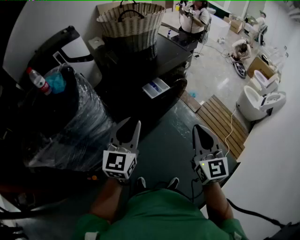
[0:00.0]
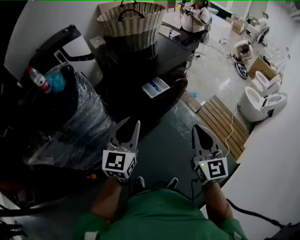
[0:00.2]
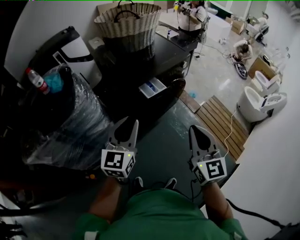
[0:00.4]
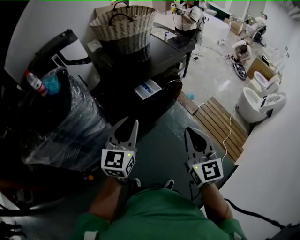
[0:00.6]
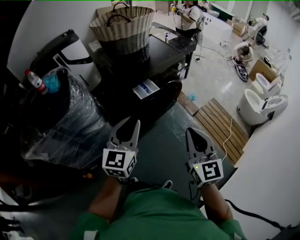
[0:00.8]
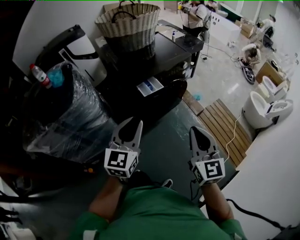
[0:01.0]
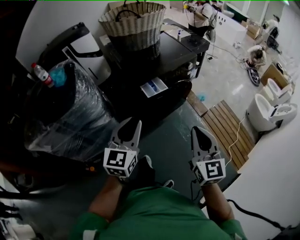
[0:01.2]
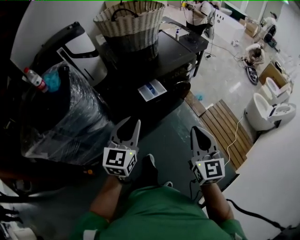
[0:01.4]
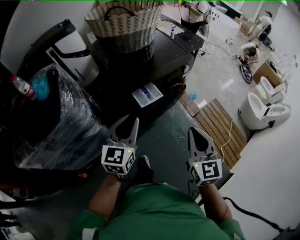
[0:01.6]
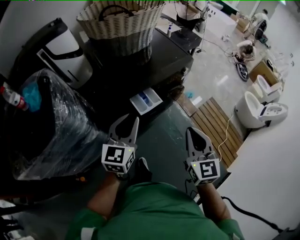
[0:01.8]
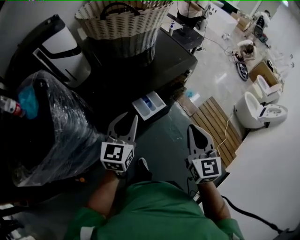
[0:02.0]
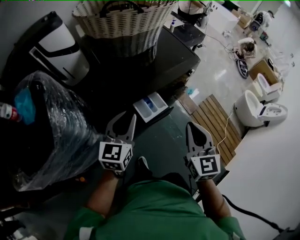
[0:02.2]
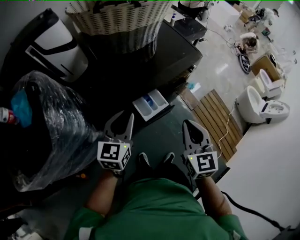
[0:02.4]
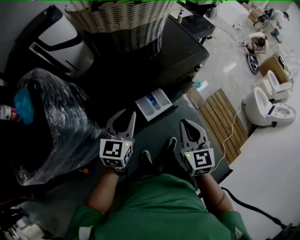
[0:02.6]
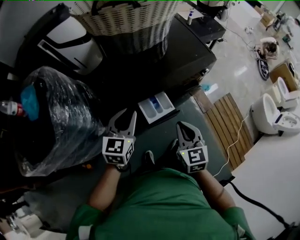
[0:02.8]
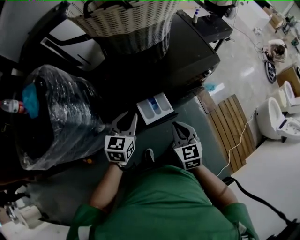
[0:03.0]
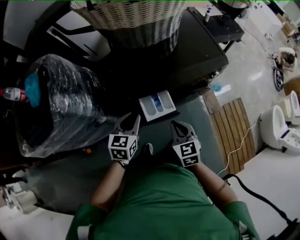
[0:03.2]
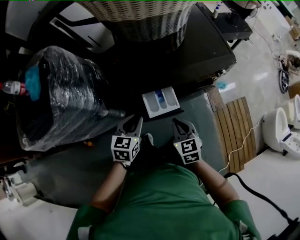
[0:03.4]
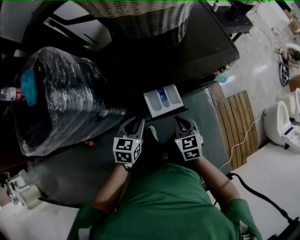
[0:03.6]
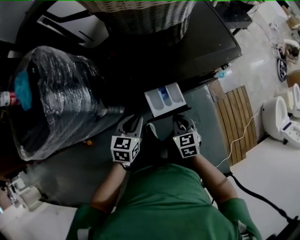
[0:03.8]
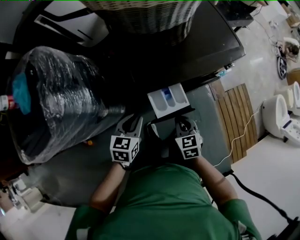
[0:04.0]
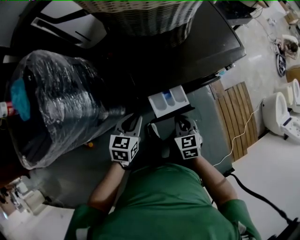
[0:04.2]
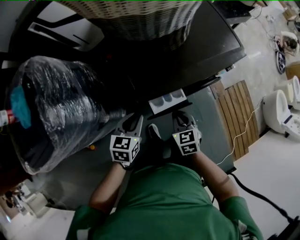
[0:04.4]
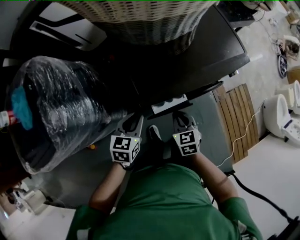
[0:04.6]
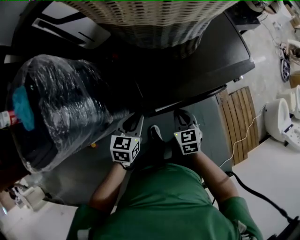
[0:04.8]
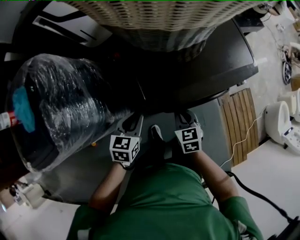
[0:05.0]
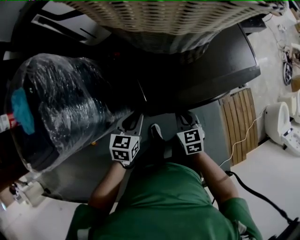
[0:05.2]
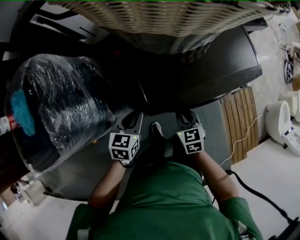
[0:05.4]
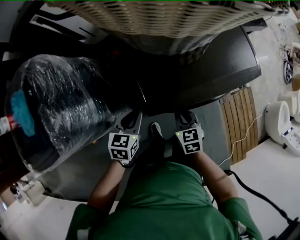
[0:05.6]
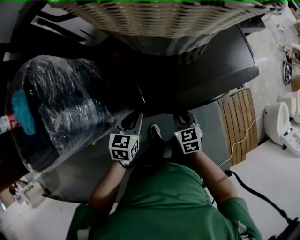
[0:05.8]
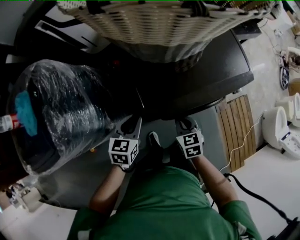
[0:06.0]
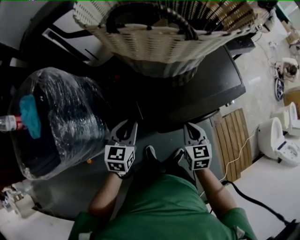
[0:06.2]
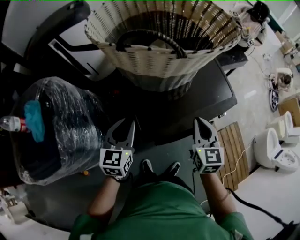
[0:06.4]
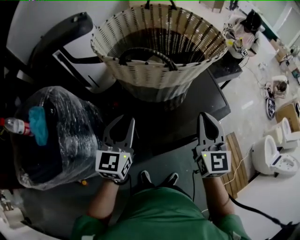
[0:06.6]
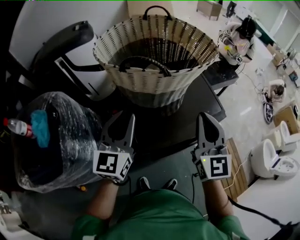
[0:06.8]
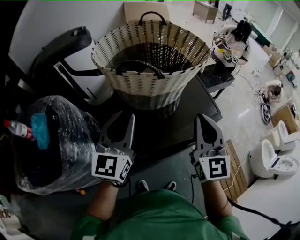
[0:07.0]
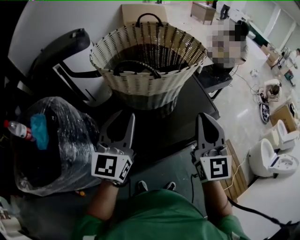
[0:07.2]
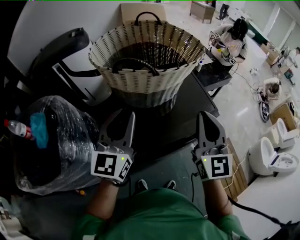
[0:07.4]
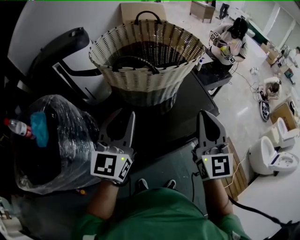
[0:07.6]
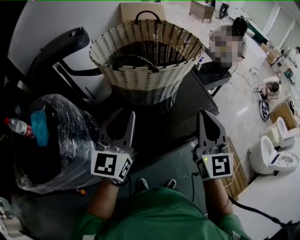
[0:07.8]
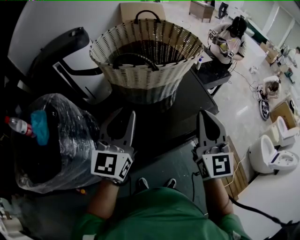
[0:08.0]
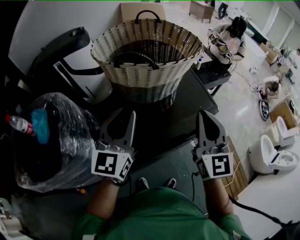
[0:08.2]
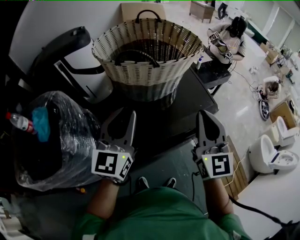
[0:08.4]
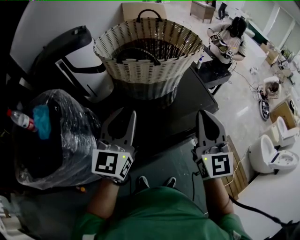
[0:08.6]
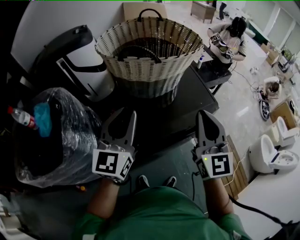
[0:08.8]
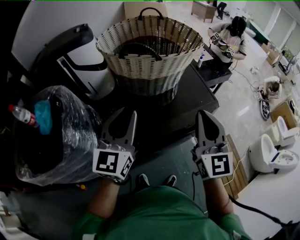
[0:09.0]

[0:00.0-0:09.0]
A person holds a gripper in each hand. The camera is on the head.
0:00.0 to 0:01.6: Both grippers travel together forward and to the right, some 15 cm.
0:01.6 to 0:03.0: The grippers both shift forward and downward by approximately 25 cm. The right gripper turns by about 30 degrees. Meanwhile the left gripper turns by about 20 degrees.
0:03.0 to 0:04.4: The left gripper is displaced downward by about 10 cm. Meanwhile the right gripper moves downward, forward and to the left, roughly 15 cm.
0:04.4 to 0:06.0: Both grippers move forward, approximately 5 cm.
0:06.0 to 0:07.6: The grippers both shift upward by some 40 cm. The left gripper points its fingers some 50 degrees further upward. The right gripper angles its fingers upward, by some 50 degrees.
0:07.6 to 0:09.0: Both grippers travel together backward, about 5 cm.

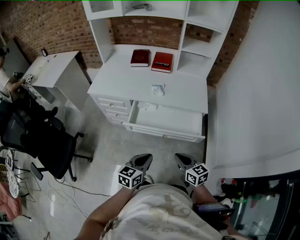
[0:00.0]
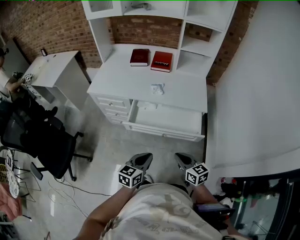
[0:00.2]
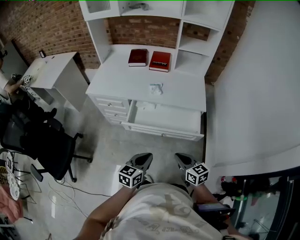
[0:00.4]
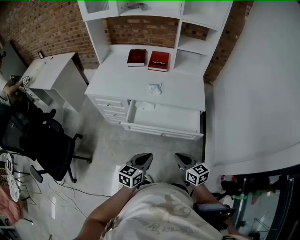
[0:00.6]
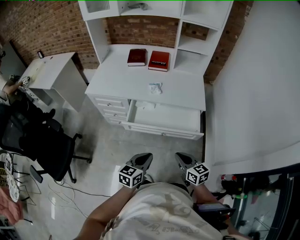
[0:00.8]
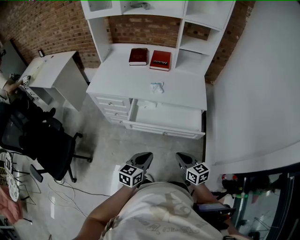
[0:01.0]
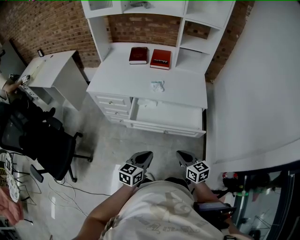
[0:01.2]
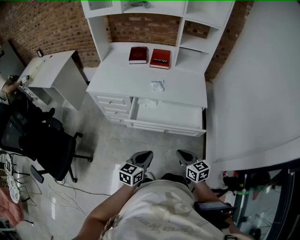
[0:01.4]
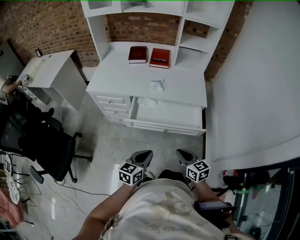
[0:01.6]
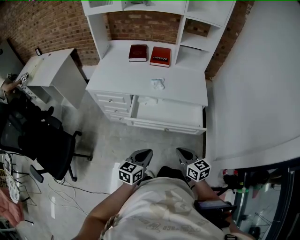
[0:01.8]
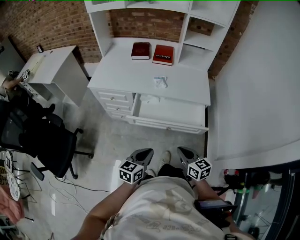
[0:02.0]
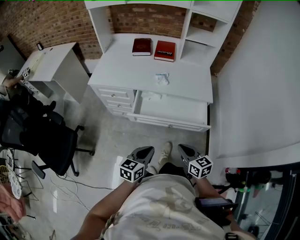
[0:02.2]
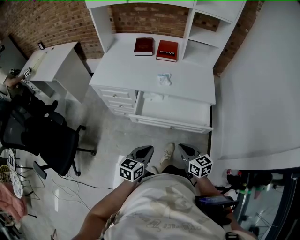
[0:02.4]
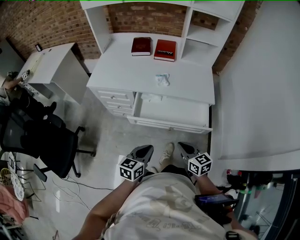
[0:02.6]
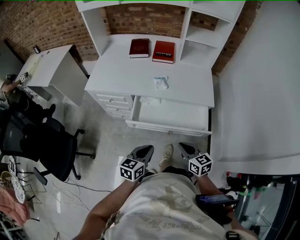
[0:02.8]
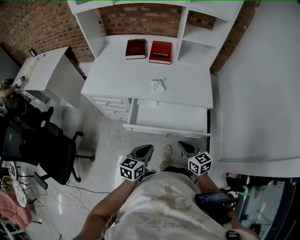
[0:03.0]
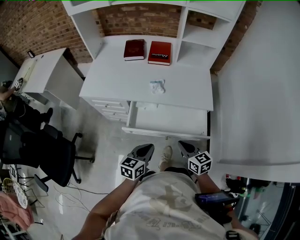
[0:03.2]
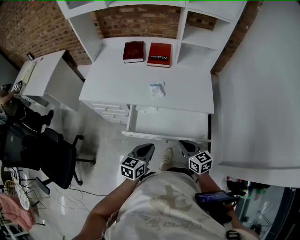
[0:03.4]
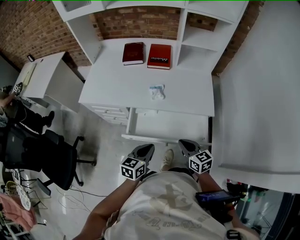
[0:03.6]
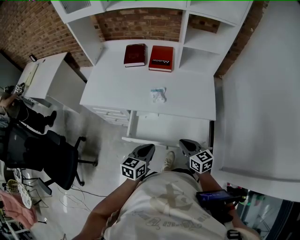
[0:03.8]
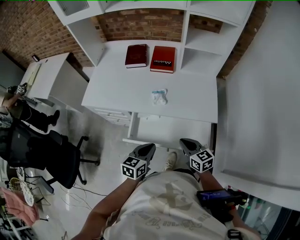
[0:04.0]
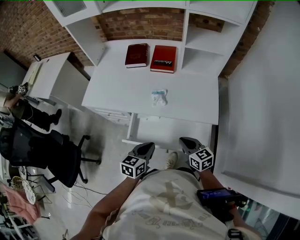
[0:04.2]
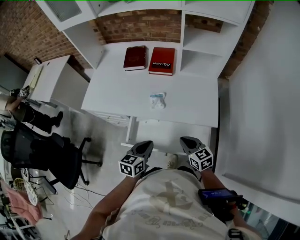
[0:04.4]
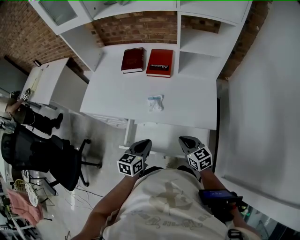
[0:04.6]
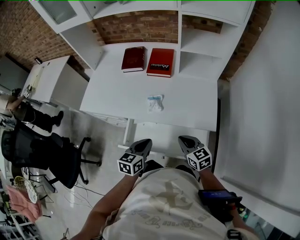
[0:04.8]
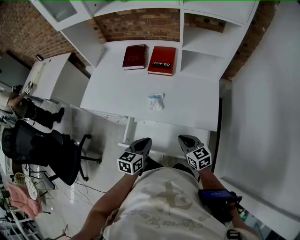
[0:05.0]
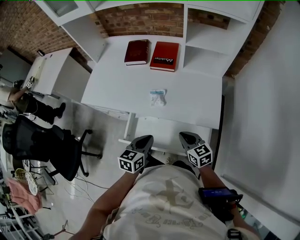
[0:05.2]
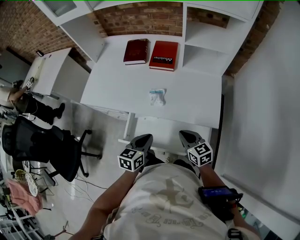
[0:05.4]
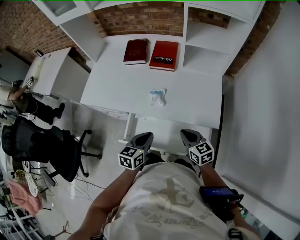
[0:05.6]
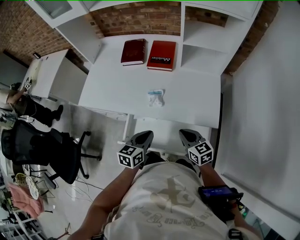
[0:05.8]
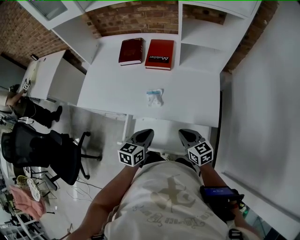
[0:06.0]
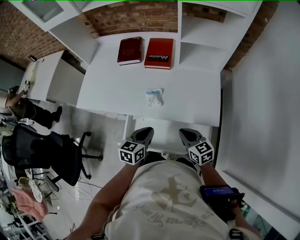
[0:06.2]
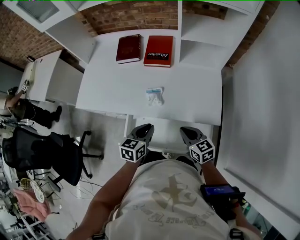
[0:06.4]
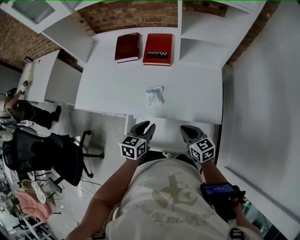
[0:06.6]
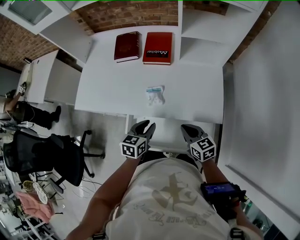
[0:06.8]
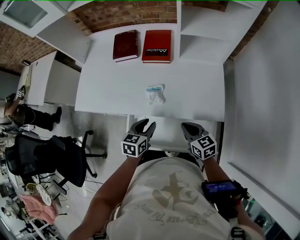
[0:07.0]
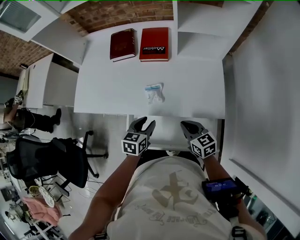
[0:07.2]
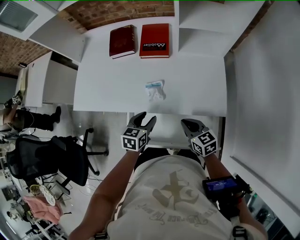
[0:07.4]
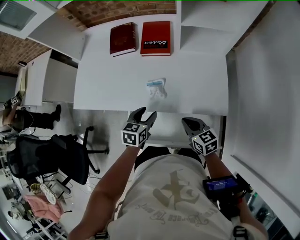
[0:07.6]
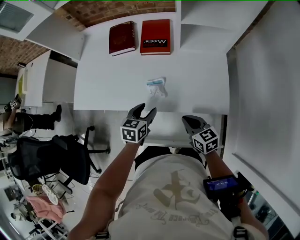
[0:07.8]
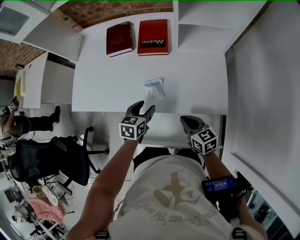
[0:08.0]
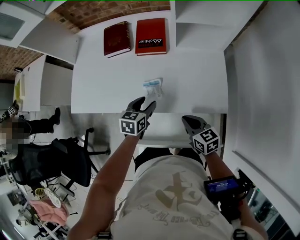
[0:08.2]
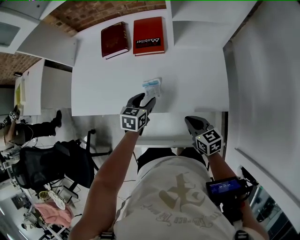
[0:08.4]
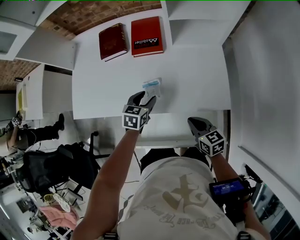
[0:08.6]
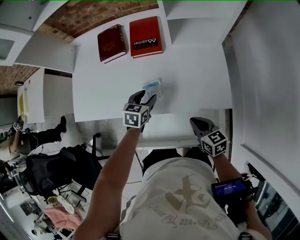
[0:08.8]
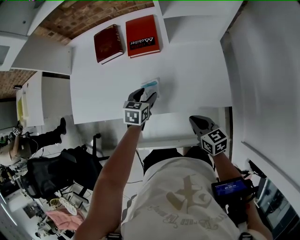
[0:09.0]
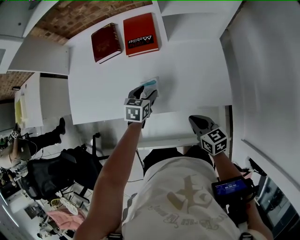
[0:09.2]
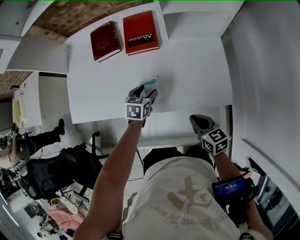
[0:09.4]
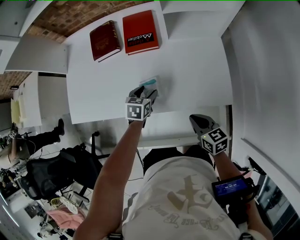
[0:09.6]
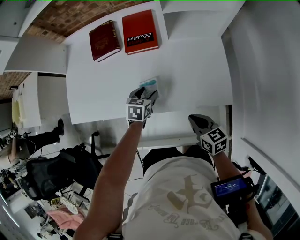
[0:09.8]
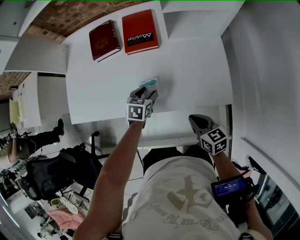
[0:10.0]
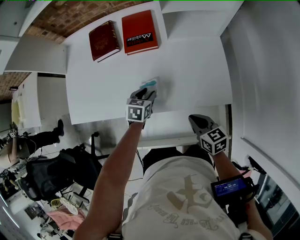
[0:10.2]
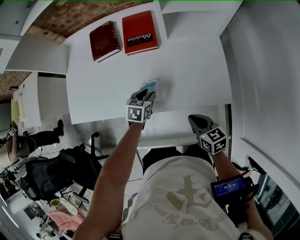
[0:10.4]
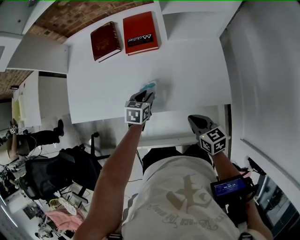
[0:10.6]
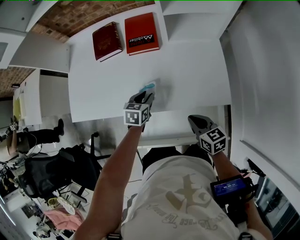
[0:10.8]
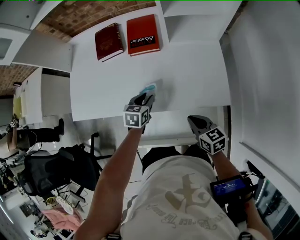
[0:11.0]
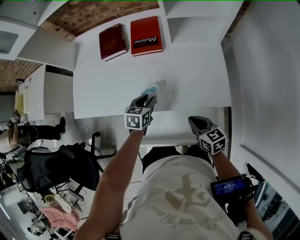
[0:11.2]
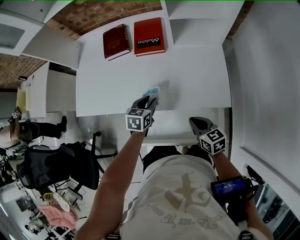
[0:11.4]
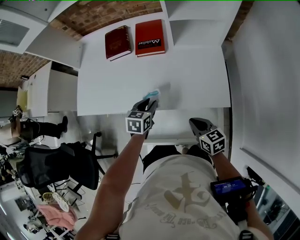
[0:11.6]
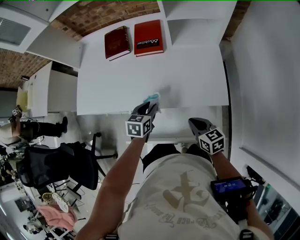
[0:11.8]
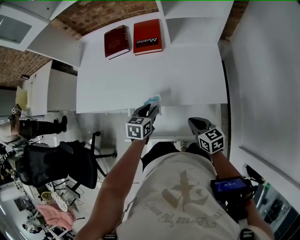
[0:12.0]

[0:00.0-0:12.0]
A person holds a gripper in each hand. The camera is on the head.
0:00.0 to 0:01.6: The grippers make only small movements.
0:01.6 to 0:03.0: Both grippers move forward, approximately 10 cm.
0:03.0 to 0:04.4: The grippers both shift forward by some 15 cm.
0:04.4 to 0:06.0: The left gripper moves forward, about 5 cm. The right gripper ends up roughly 5 cm from where it was.
0:06.0 to 0:07.6: The right gripper ends up roughly 5 cm from where it was, while the left gripper goes approximately 10 cm forward and downward, and opens.
0:07.6 to 0:09.0: The left gripper moves forward, approximately 10 cm.
0:09.0 to 0:10.4: The left gripper closes up.
0:10.4 to 0:12.0: The left gripper heads backward and upward, covering approximately 10 cm. Meanwhile the right gripper changes place by approximately 5 cm.

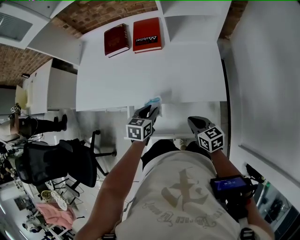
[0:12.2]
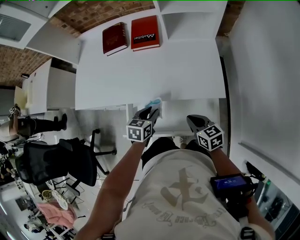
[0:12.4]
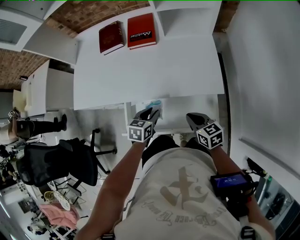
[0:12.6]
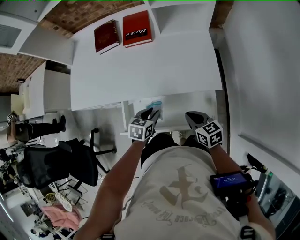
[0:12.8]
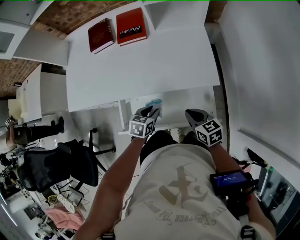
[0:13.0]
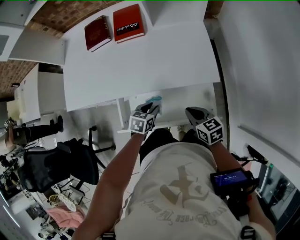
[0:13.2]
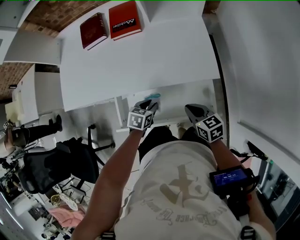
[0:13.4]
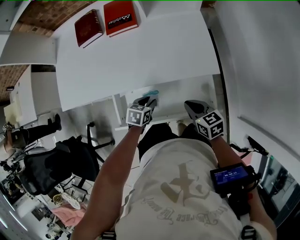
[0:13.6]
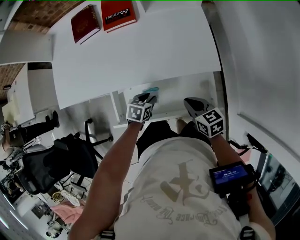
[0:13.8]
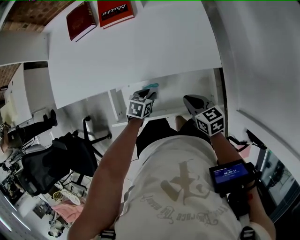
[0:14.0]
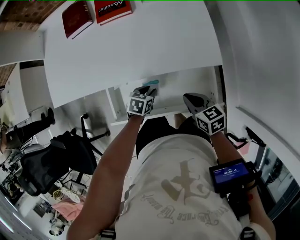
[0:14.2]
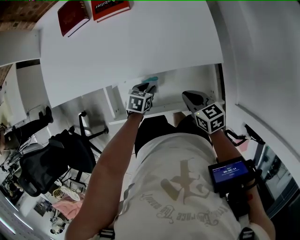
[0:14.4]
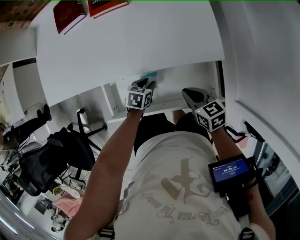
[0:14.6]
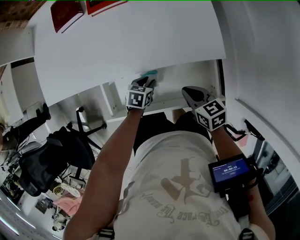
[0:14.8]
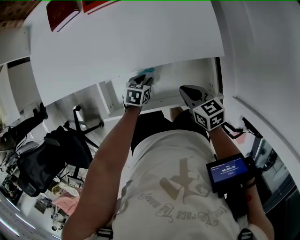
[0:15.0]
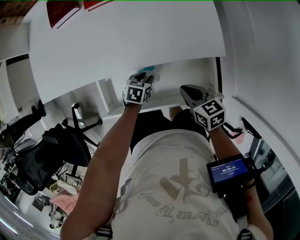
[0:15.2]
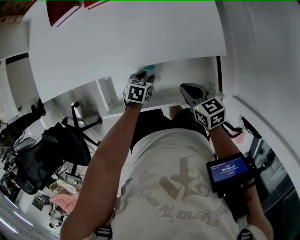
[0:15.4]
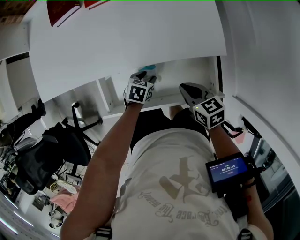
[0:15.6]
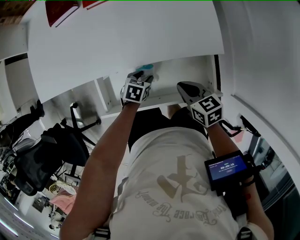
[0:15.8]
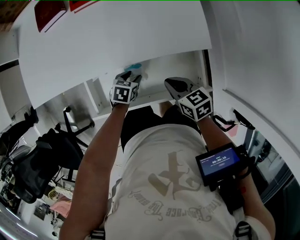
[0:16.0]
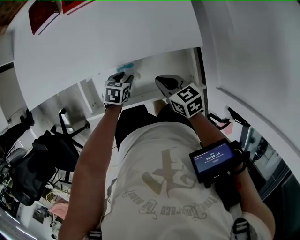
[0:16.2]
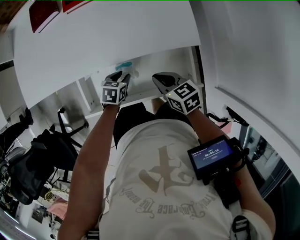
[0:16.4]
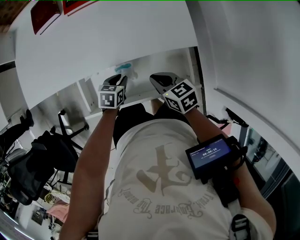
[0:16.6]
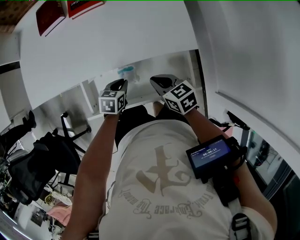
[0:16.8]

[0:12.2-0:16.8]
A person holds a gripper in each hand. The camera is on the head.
0:12.2 to 0:13.8: The left gripper goes approximately 10 cm downward, and swivels approximately 20 degrees.
0:13.8 to 0:15.2: The left gripper heads downward, covering about 5 cm.
0:15.2 to 0:16.8: The left gripper is displaced upward by about 5 cm.
